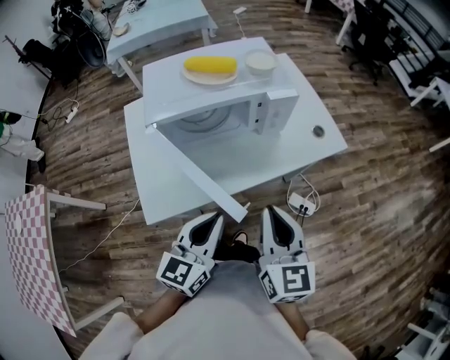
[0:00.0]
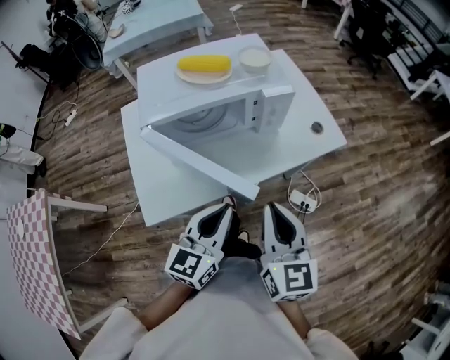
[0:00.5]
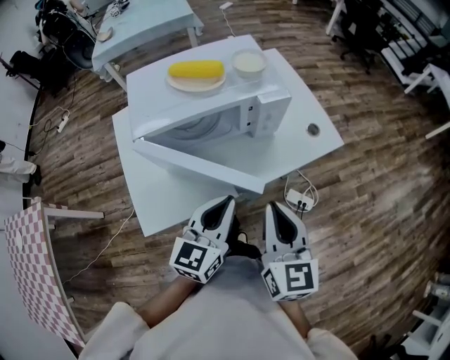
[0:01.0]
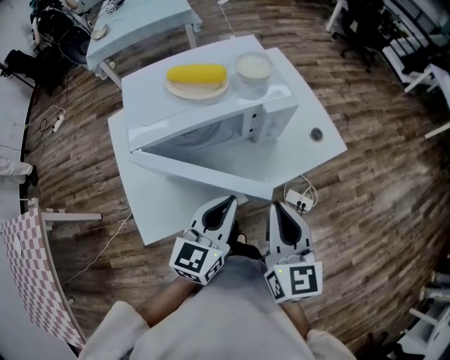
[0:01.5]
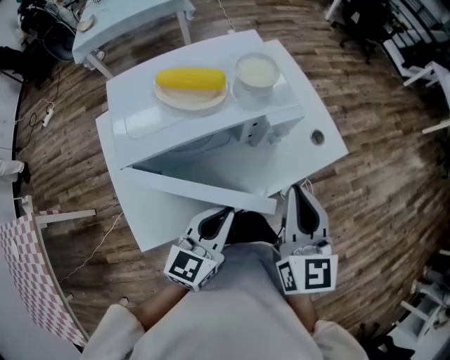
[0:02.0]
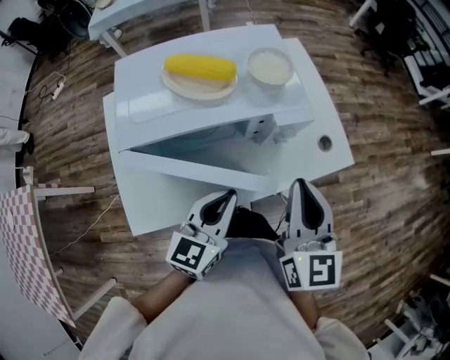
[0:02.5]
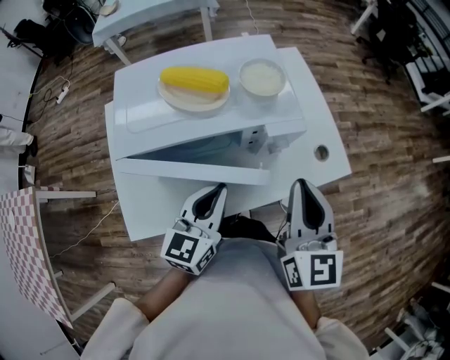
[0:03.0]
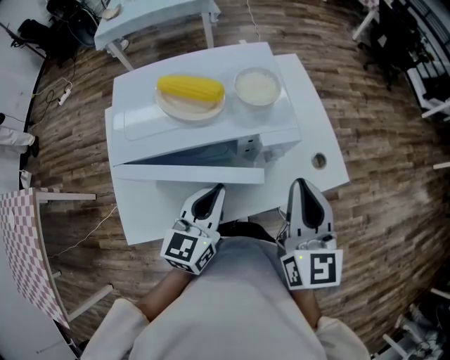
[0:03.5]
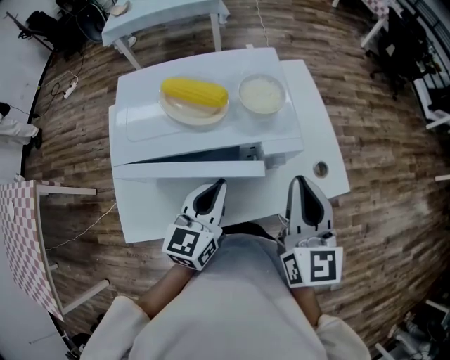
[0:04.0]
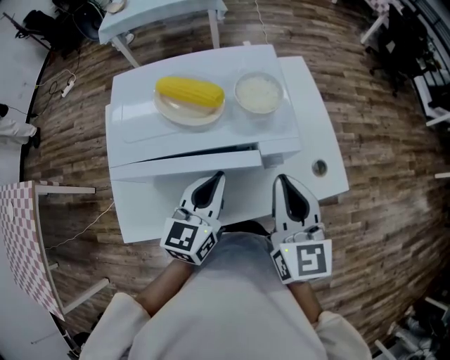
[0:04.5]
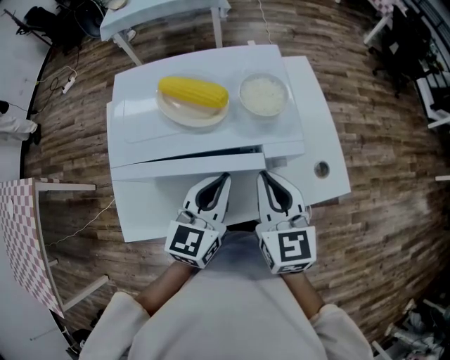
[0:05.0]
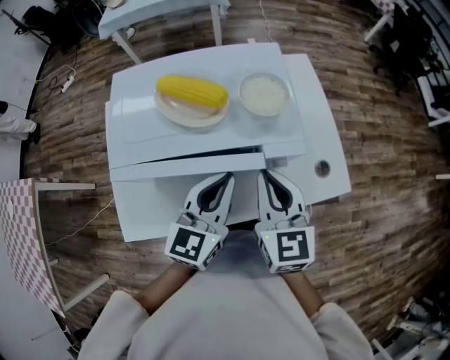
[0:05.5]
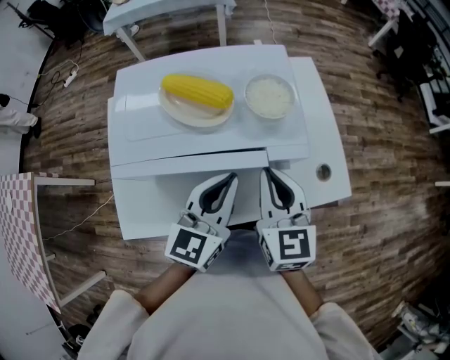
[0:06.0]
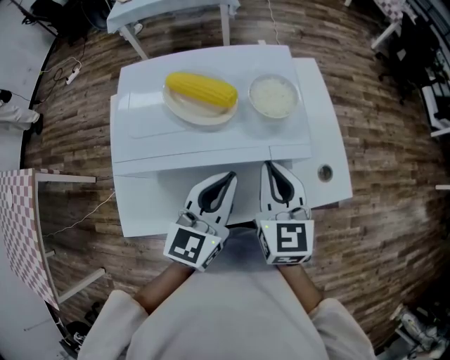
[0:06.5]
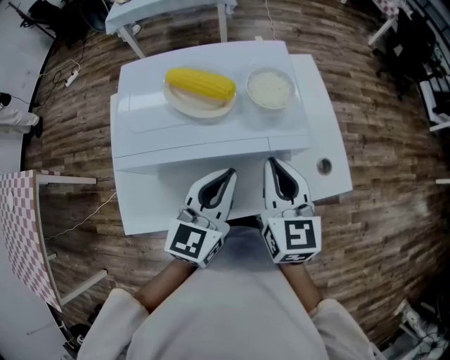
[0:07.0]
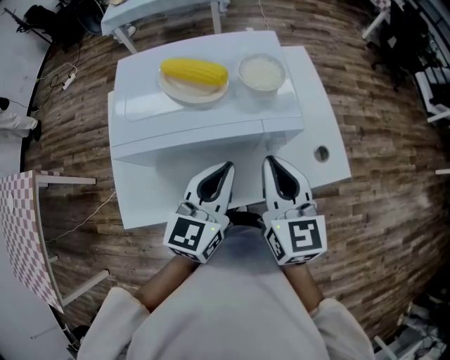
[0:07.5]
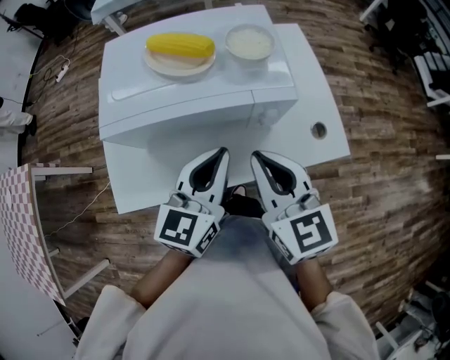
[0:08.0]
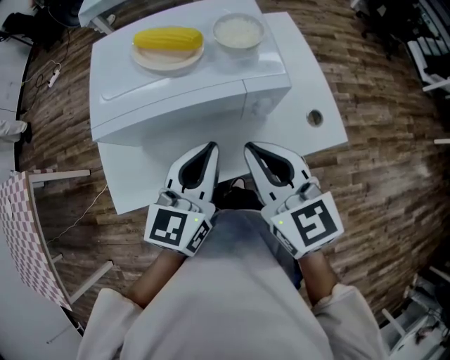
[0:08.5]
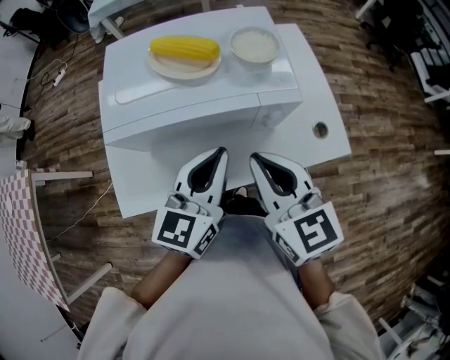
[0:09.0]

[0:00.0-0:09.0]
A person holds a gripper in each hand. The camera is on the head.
0:00.0 to 0:02.0: The two grippers go roughly 15 cm forward.
0:02.0 to 0:04.5: The two grippers go about 10 cm forward. The left gripper turns by about 20 degrees.
0:04.5 to 0:07.0: The right gripper ends up roughly 5 cm from where it was.
0:07.0 to 0:09.0: The right gripper goes some 10 cm backward.

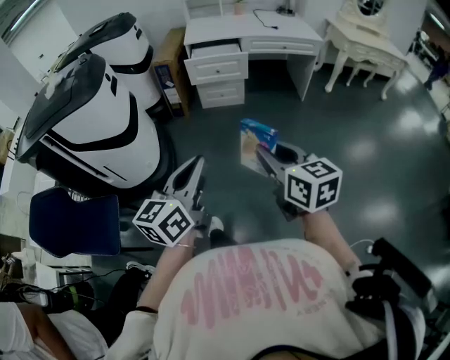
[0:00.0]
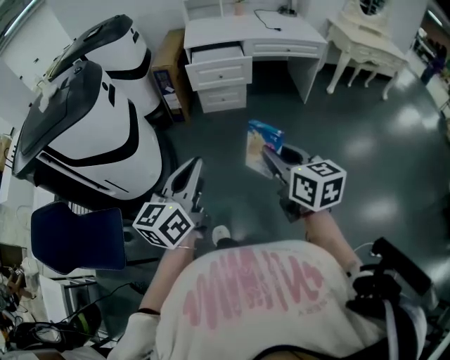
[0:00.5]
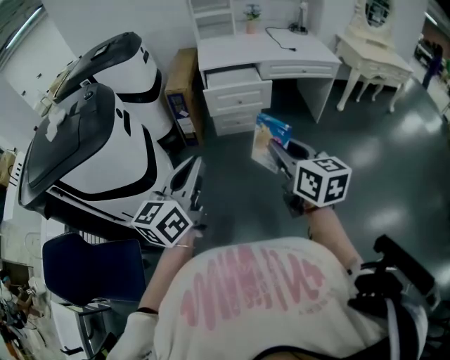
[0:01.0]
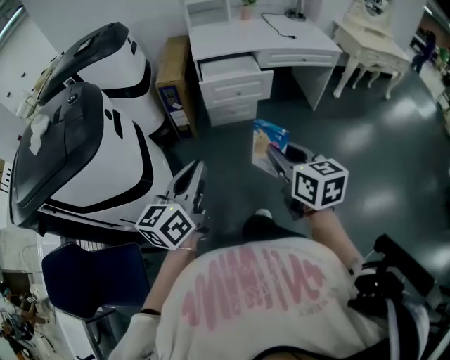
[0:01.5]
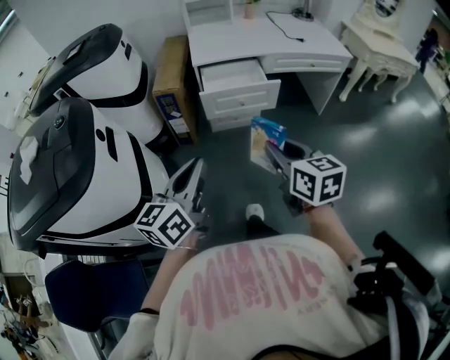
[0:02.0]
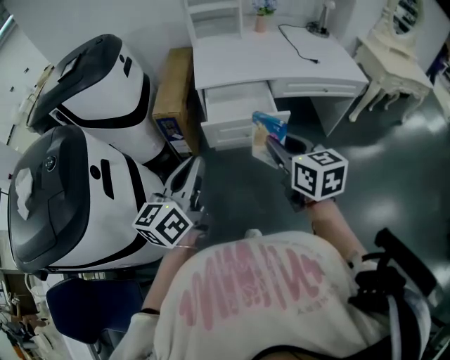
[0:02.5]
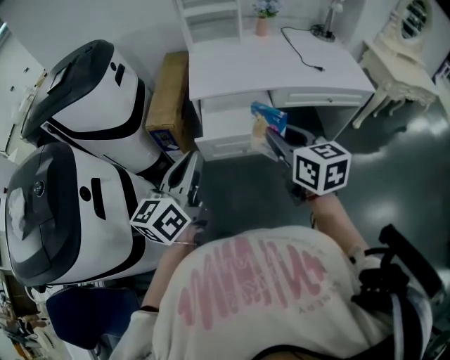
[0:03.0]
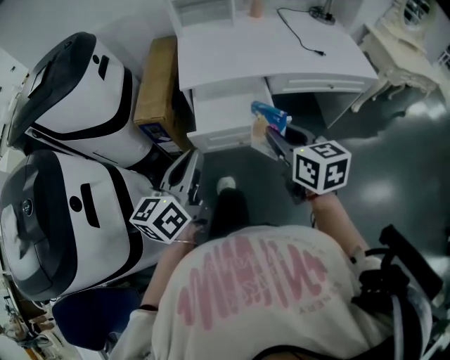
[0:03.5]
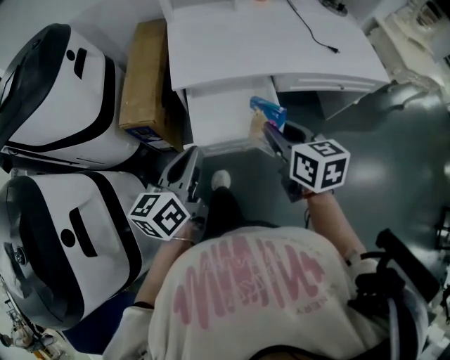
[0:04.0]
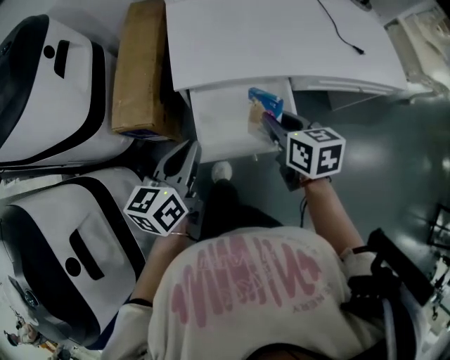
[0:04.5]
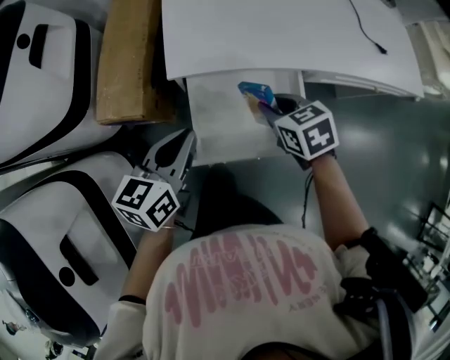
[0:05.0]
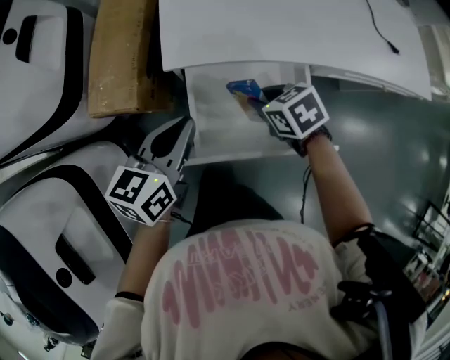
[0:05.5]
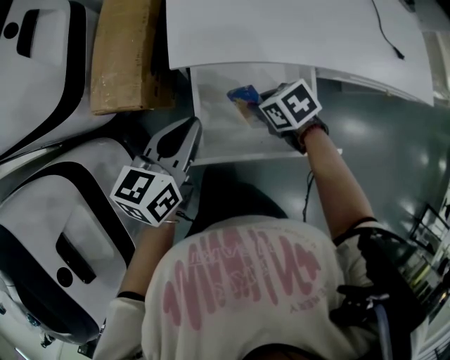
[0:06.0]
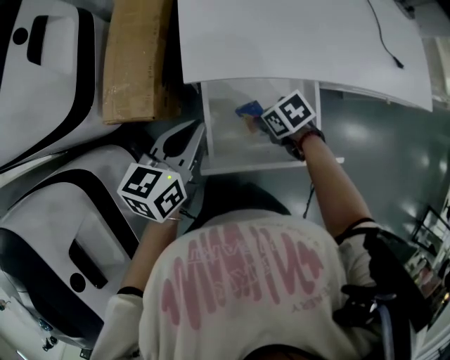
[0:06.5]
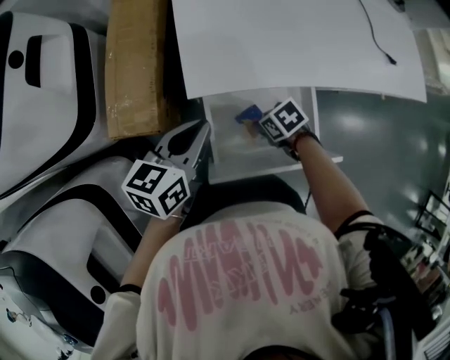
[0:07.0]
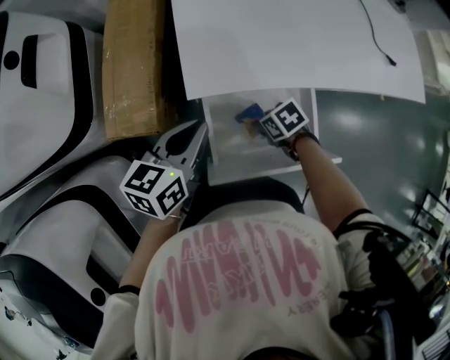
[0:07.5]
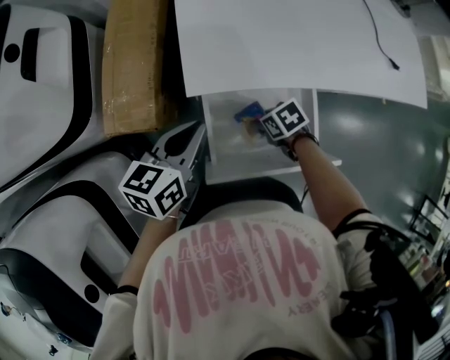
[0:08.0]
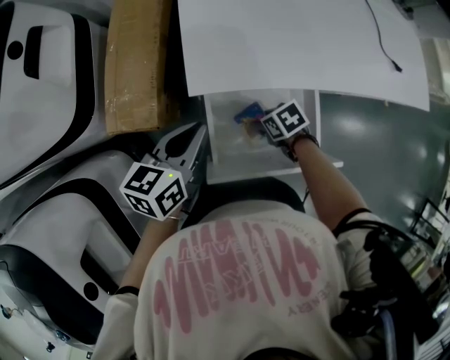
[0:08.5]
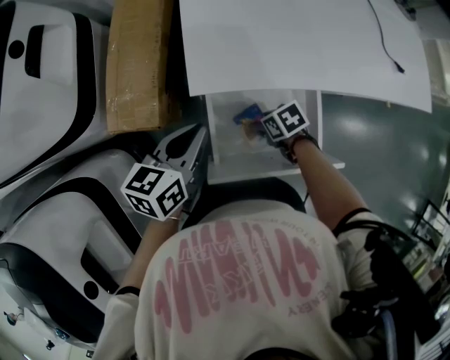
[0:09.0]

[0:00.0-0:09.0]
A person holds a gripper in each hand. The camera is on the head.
0:00.0 to 0:02.0: The left gripper goes about 40 cm forward and to the left. The right gripper moves forward, roughly 35 cm.
0:02.0 to 0:04.5: The pair of grippers is taken forward, approximately 50 cm.
0:04.5 to 0:07.0: The right gripper goes roughly 20 cm downward, and swivels approximately 50 degrees, while the left gripper ends up about 10 cm from where it was.
0:07.0 to 0:09.0: The right gripper opens.

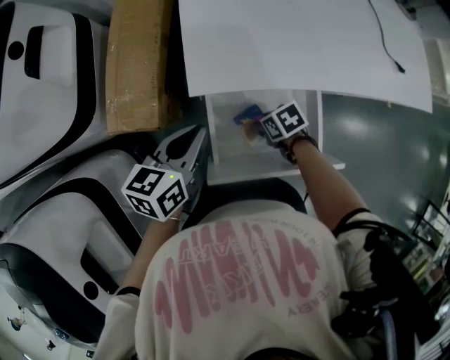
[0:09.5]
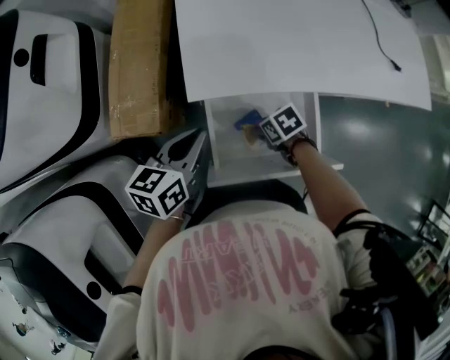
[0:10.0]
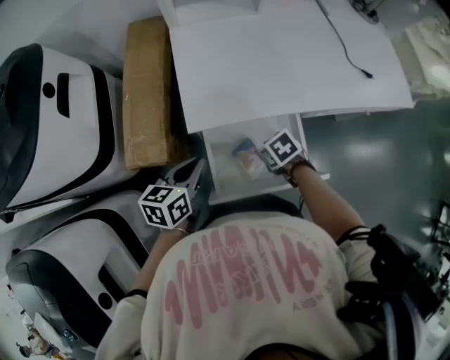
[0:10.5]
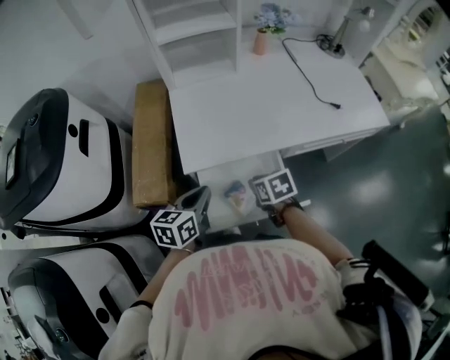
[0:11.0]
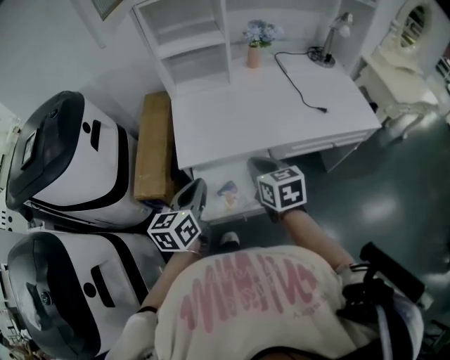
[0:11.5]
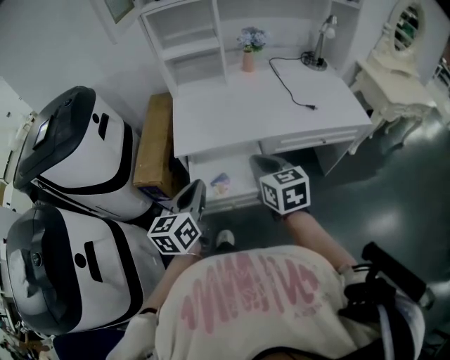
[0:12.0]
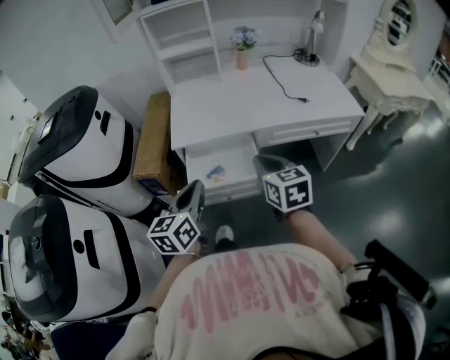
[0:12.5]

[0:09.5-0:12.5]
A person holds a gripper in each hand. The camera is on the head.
0:09.5 to 0:11.0: The right gripper heads upward, covering about 20 cm, changes its angle by about 30 degrees, and closes its fingers. Meanwhile the left gripper heads upward, covering some 5 cm.
0:11.0 to 0:12.5: The right gripper goes about 25 cm upward, backward and to the right, and tips its fingers upward by approximately 30 degrees; the left gripper heads backward, upward and to the right, covering approximately 25 cm, and rotates approximately 30 degrees.

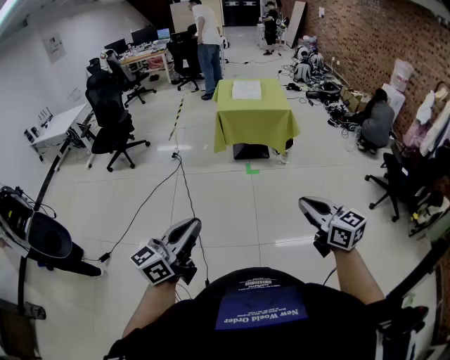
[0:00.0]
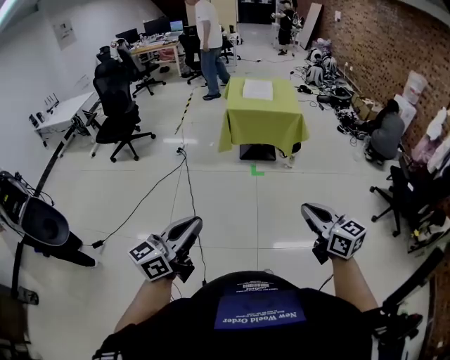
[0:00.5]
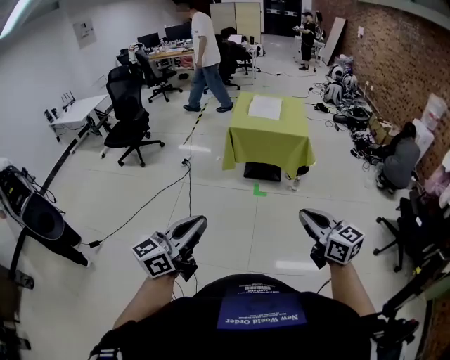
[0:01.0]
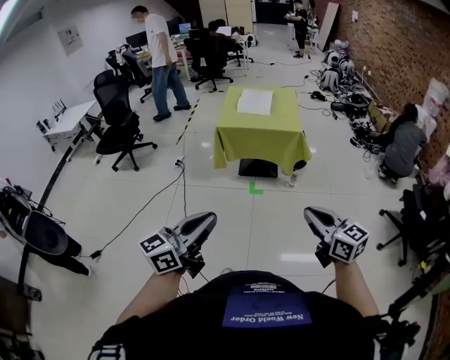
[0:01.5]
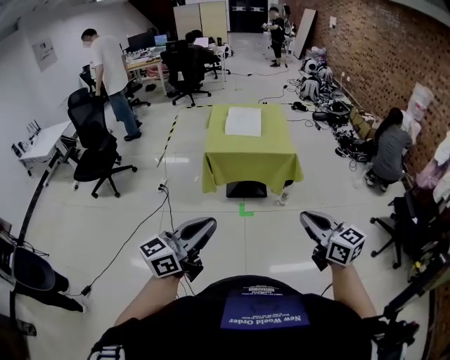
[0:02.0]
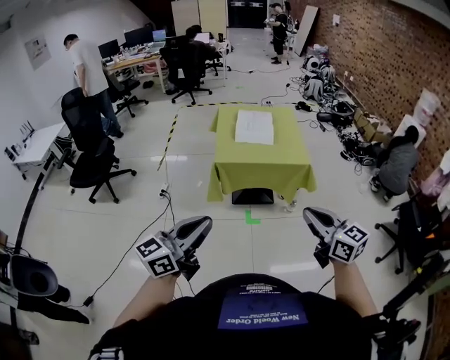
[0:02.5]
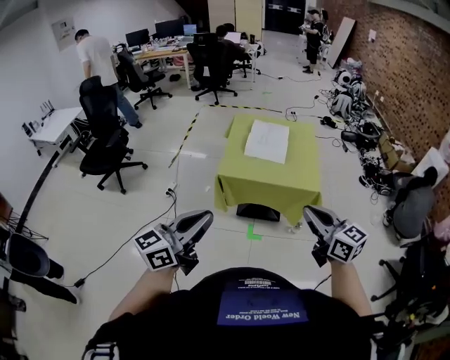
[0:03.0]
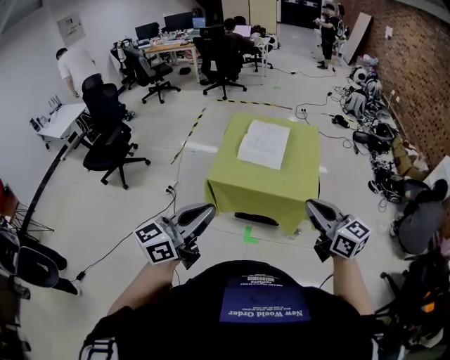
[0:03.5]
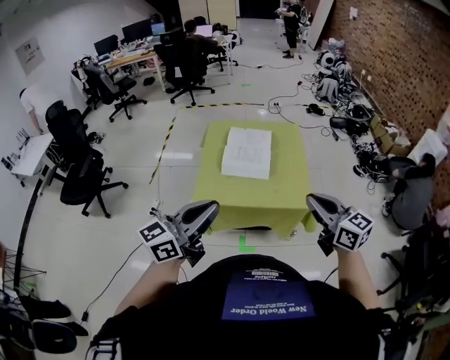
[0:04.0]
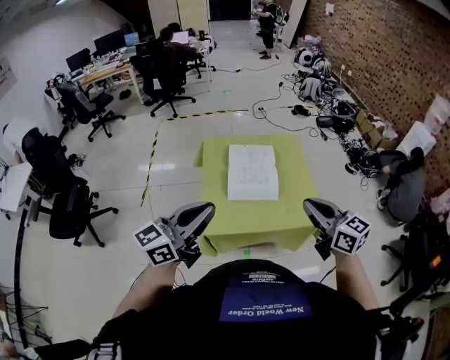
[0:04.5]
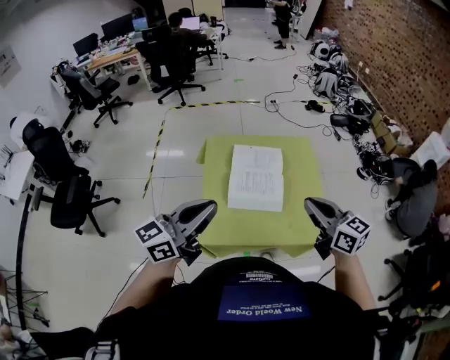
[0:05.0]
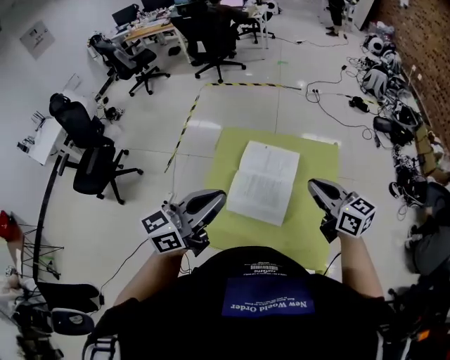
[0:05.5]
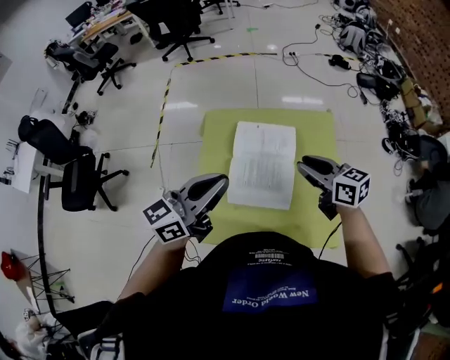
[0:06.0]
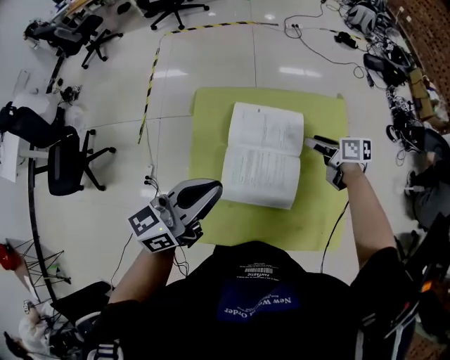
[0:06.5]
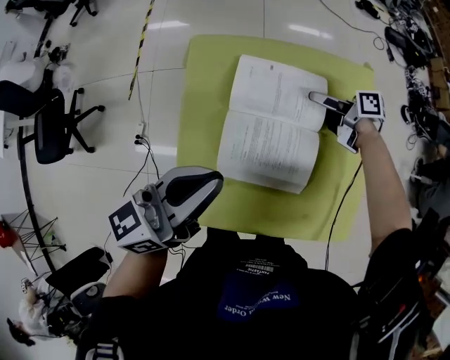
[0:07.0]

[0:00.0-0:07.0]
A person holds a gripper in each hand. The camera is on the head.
0:00.0 to 0:02.0: The two grippers travel together, forward, roughly 40 cm.
0:02.0 to 0:03.5: The grippers both shift forward by about 35 cm.
0:03.5 to 0:05.0: Both grippers move forward, about 35 cm.
0:05.0 to 0:07.0: The left gripper shifts some 25 cm forward and downward, while the right gripper goes approximately 50 cm forward and downward, rolls clockwise, seen from behind, by about 50 degrees, and opens up.
